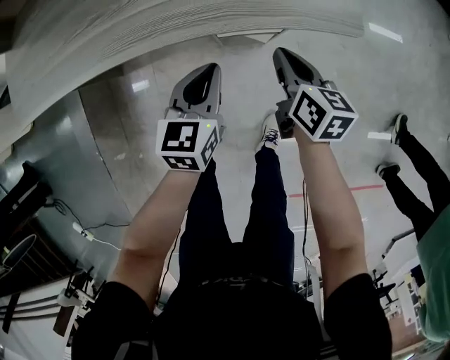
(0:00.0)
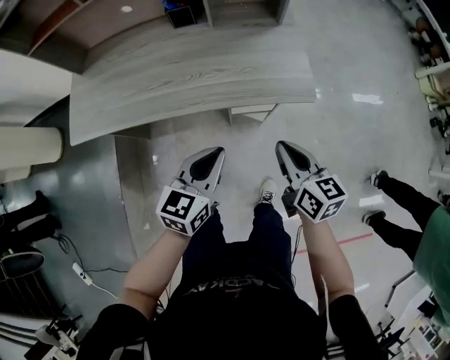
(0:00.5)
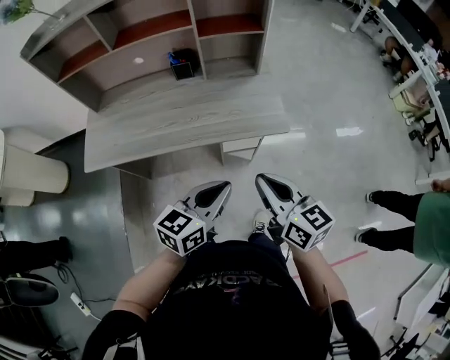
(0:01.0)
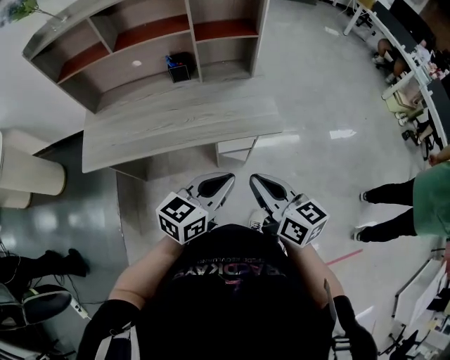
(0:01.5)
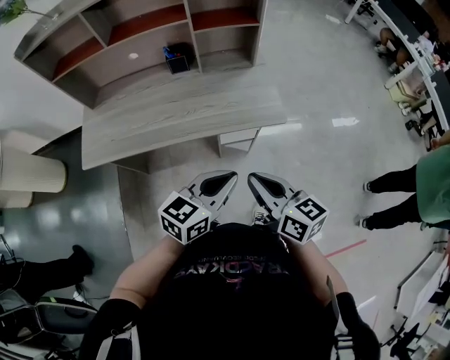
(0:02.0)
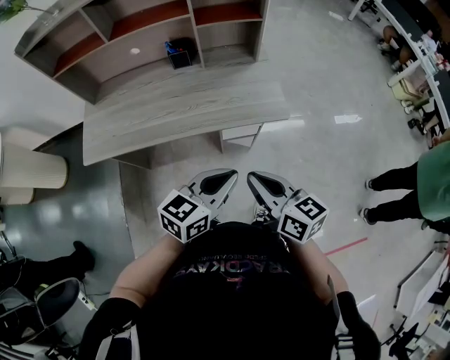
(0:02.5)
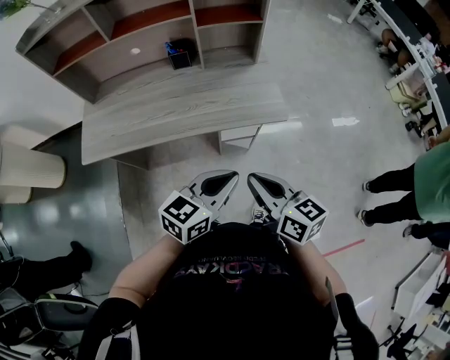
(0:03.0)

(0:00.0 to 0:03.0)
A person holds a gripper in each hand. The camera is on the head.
0:00.0 - 0:01.5: The left gripper heads upward, covering some 25 cm, and swivels some 30 degrees, while the right gripper shifts about 35 cm upward and backward, and rotates approximately 20 degrees.
0:01.5 - 0:03.0: The grippers move only a little.

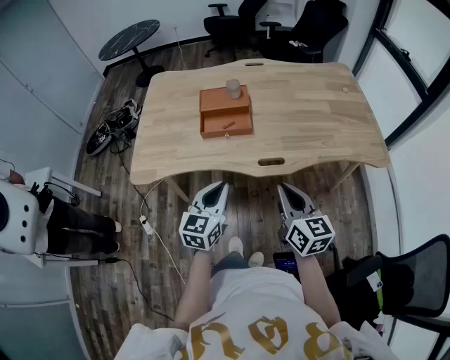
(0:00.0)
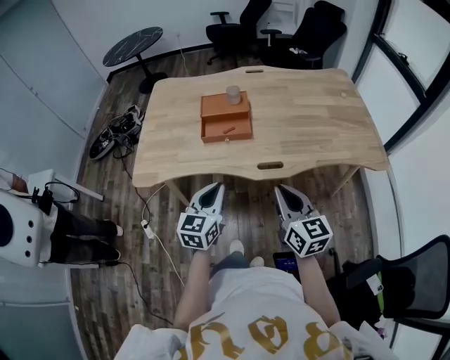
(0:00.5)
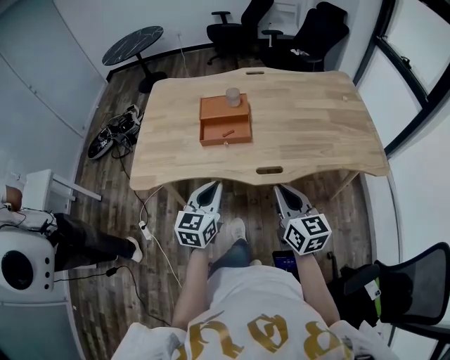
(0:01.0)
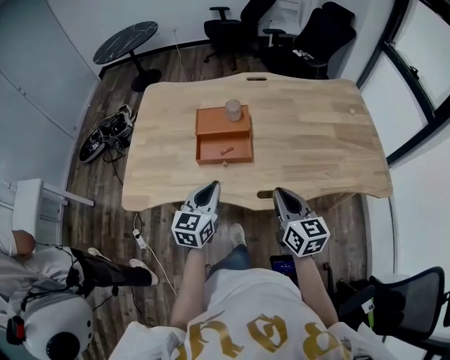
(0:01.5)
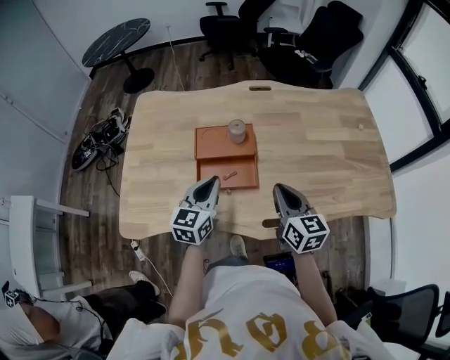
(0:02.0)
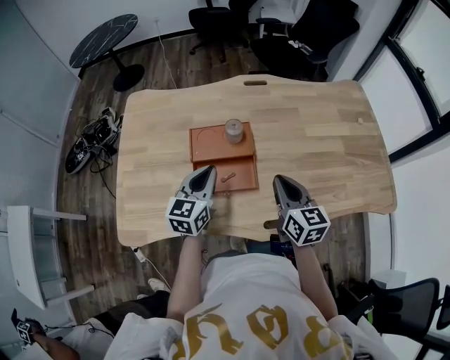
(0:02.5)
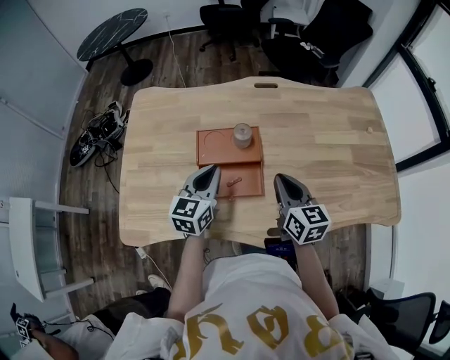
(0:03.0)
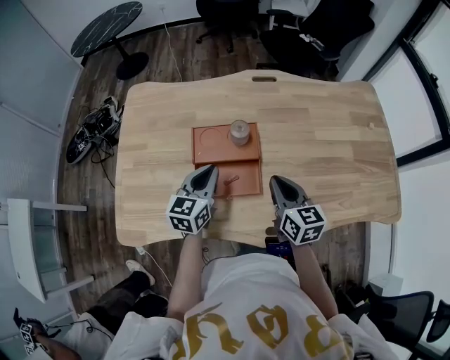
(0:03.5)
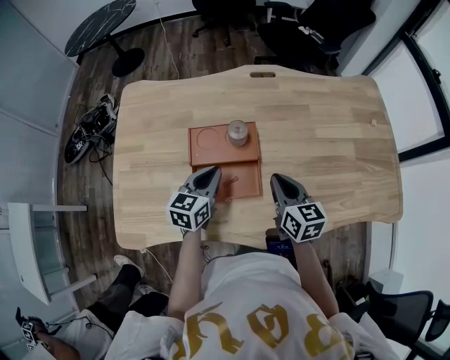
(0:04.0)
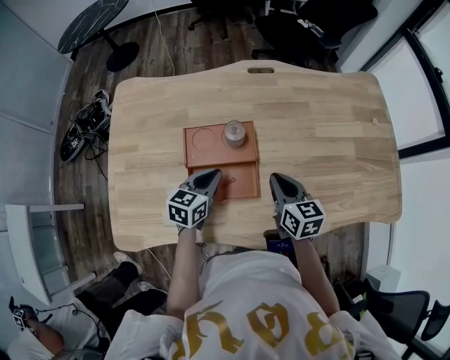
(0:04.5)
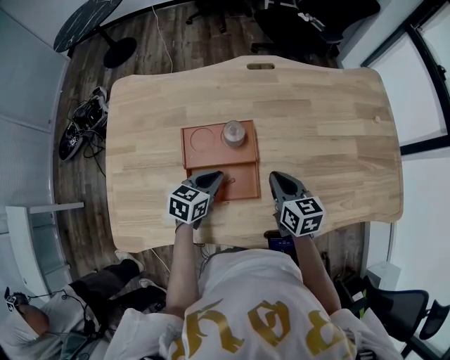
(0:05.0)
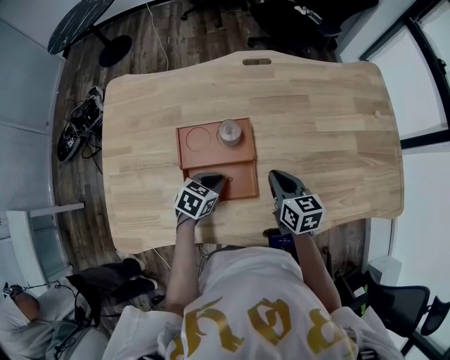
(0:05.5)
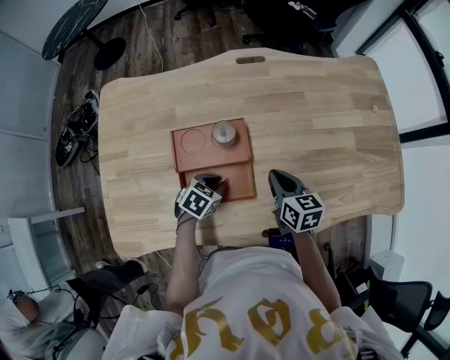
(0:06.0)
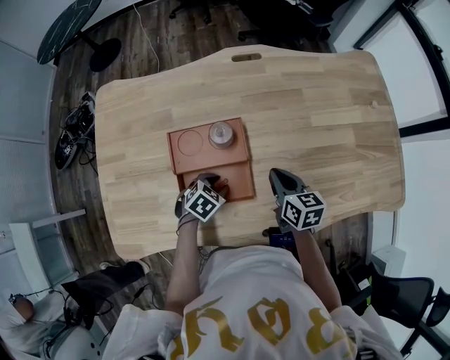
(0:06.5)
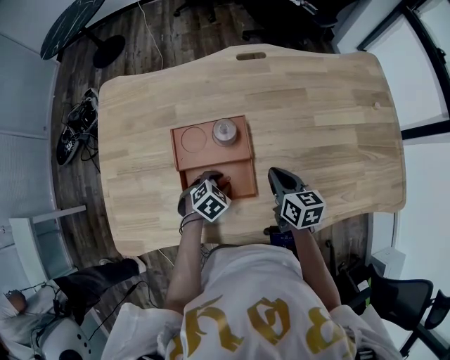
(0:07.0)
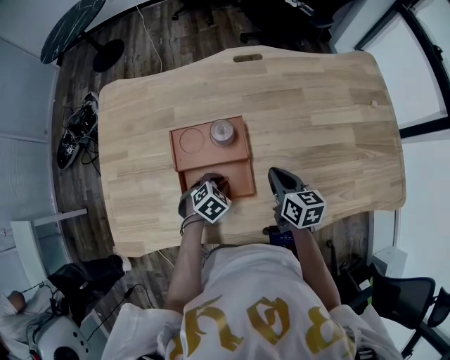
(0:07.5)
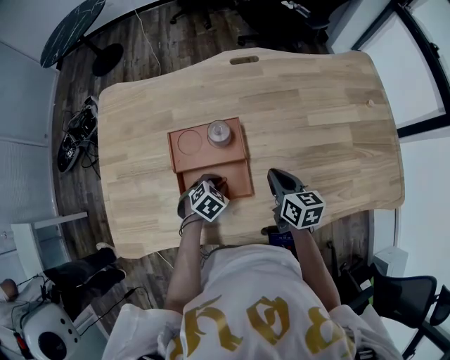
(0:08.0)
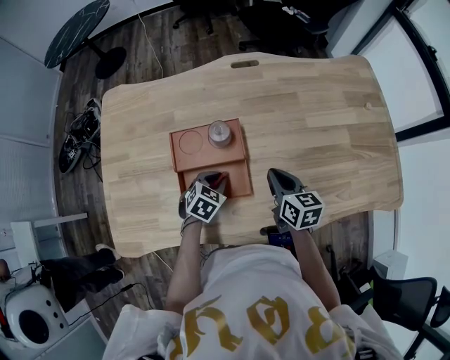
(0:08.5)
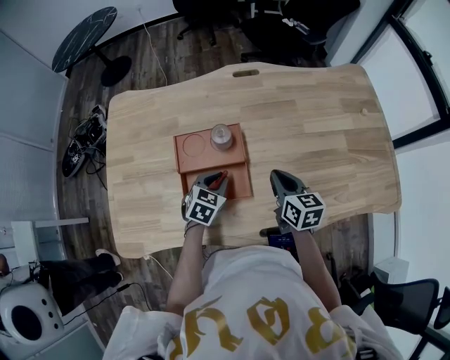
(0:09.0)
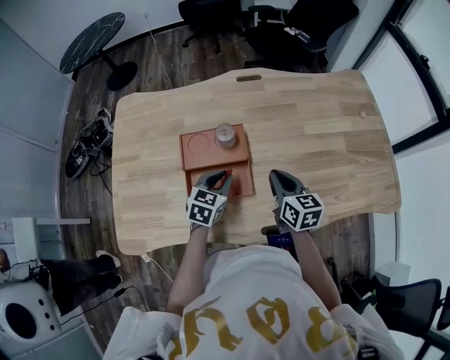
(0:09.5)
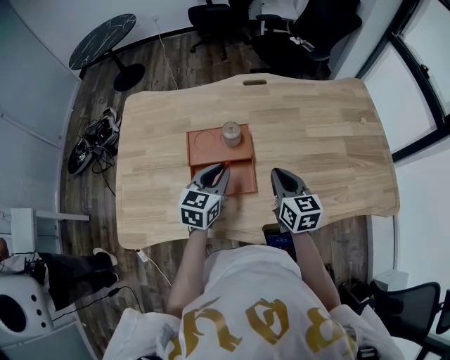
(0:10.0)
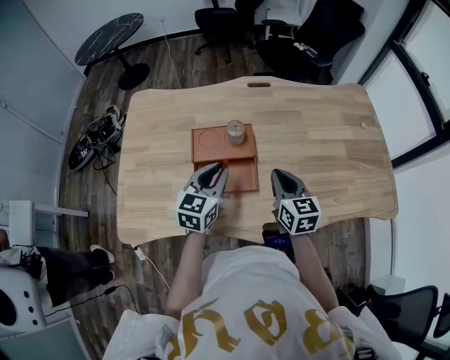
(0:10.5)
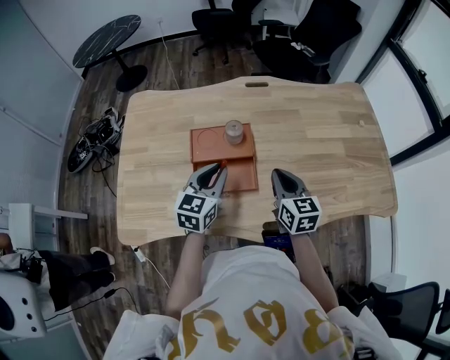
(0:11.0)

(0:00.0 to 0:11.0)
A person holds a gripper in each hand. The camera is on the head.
0:00.0 - 0:02.0: The grippers both shift forward by some 30 cm.
0:02.0 - 0:03.5: Both grippers travel together forward, roughly 10 cm.
0:03.5 - 0:05.5: The left gripper heads downward, covering about 15 cm, and tilts its fingers some 30 degrees downward; the right gripper moves downward and forward, some 10 cm.
0:05.5 - 0:07.5: The left gripper moves about 5 cm, and swivels roughly 30 degrees.
0:07.5 - 0:09.0: The left gripper shifts approximately 10 cm upward, and swivels roughly 20 degrees.
0:09.0 - 0:11.0: The left gripper shifts about 15 cm upward, and changes its angle by some 30 degrees; the right gripper is displaced upward and backward by roughly 10 cm.

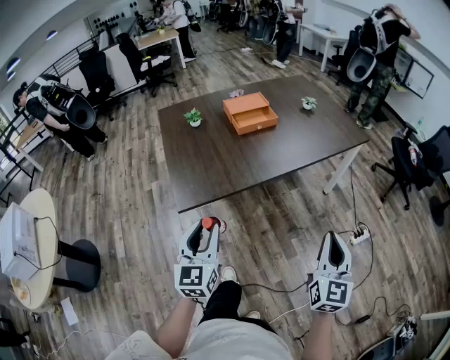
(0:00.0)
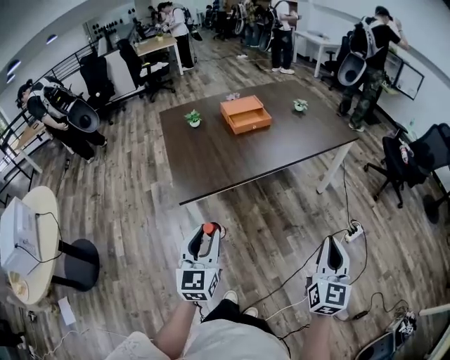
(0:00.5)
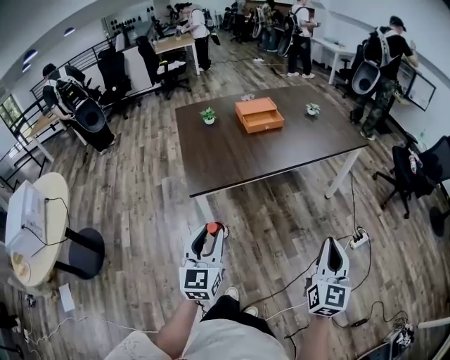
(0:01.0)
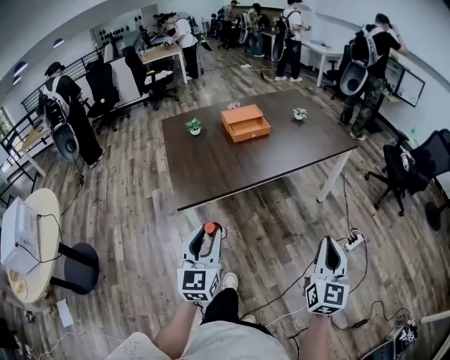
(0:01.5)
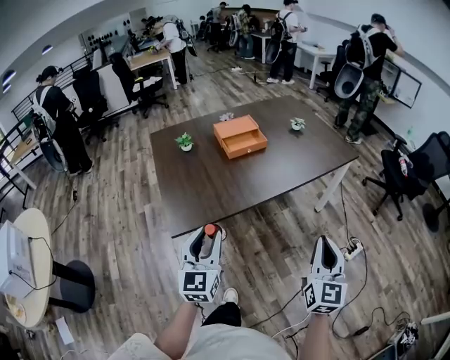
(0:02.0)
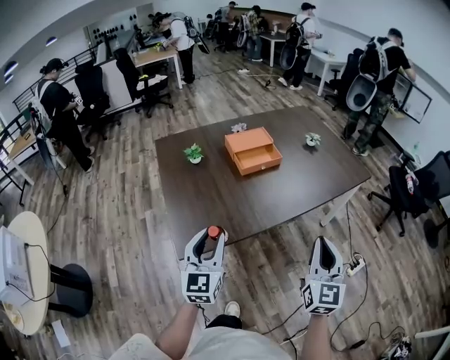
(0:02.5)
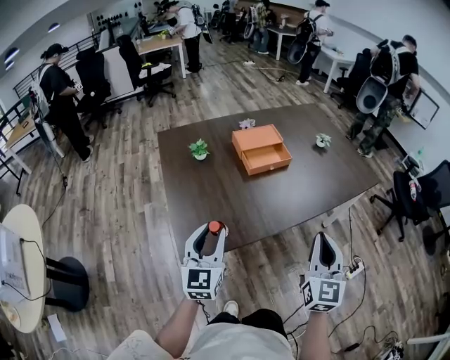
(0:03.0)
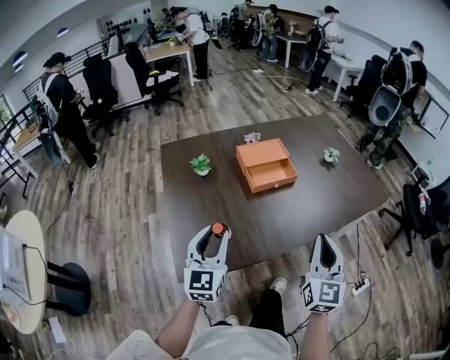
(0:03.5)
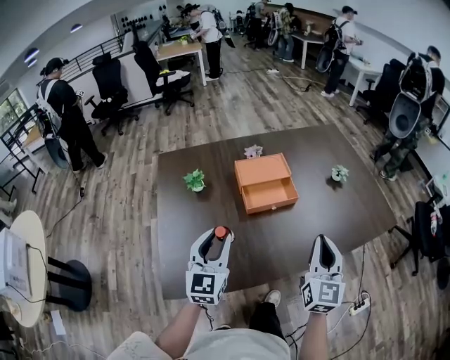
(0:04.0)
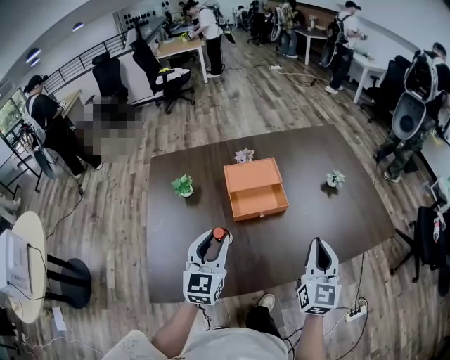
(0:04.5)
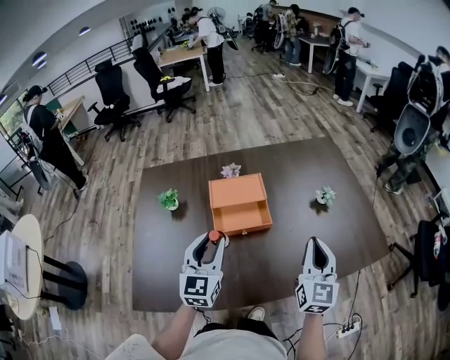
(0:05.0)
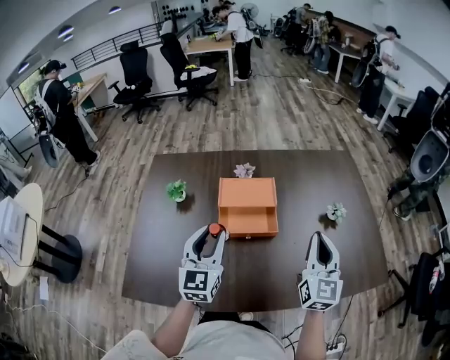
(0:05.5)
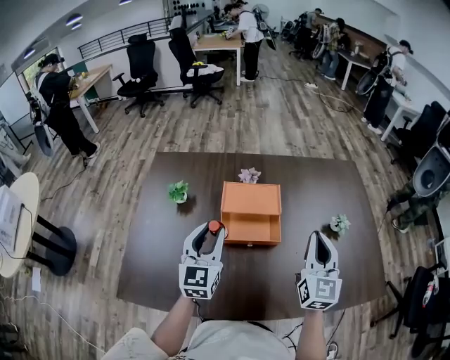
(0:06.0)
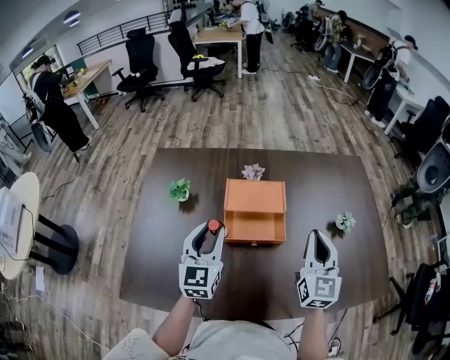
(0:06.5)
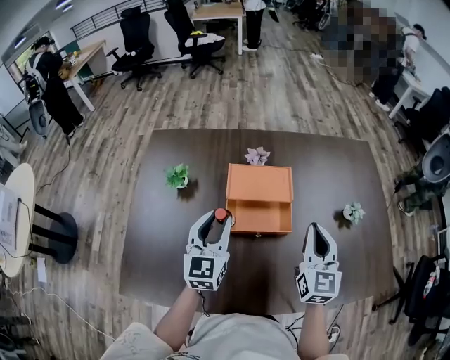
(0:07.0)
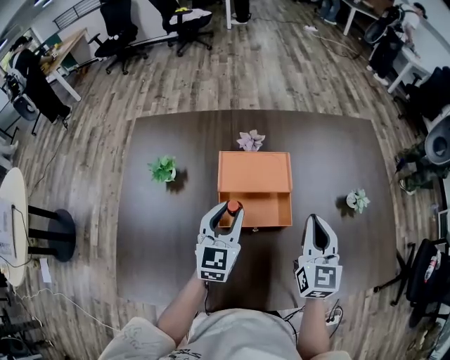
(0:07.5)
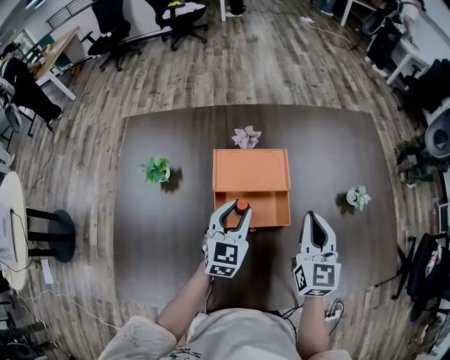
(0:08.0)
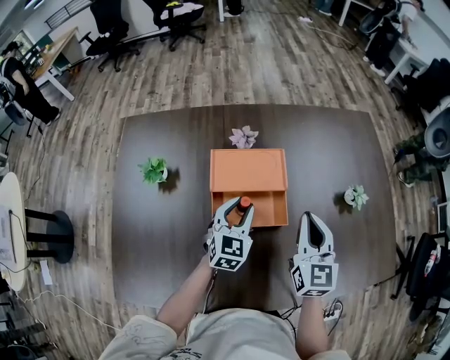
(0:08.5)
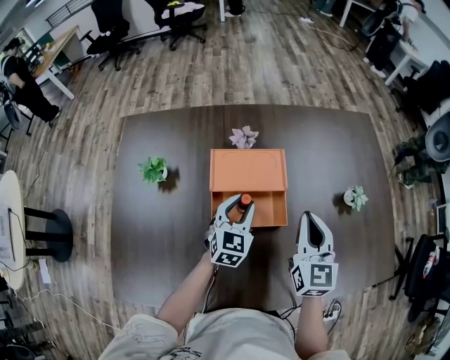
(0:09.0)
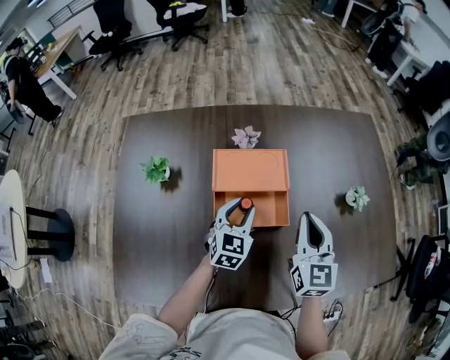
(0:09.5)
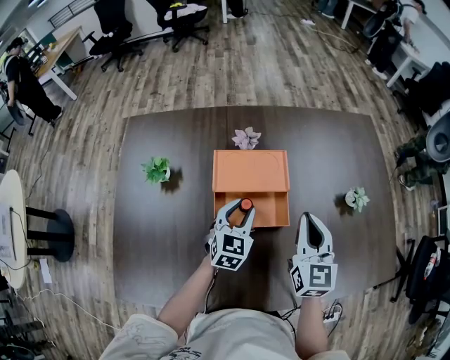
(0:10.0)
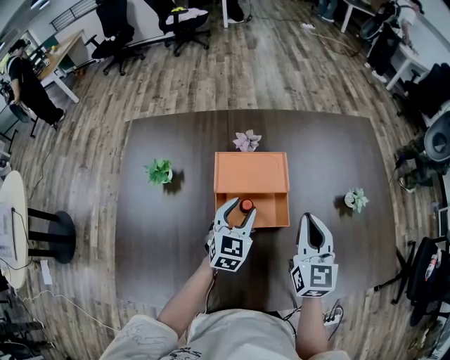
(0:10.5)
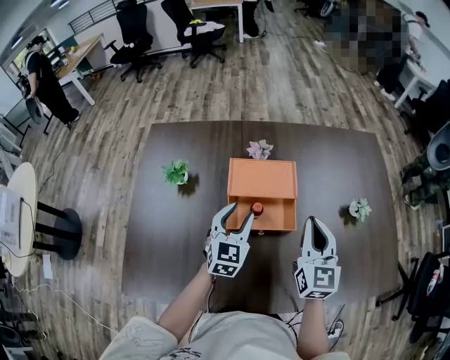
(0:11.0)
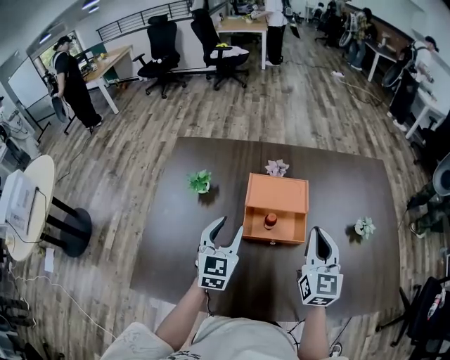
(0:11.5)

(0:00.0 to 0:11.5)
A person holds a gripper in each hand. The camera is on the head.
0:00.0 - 0:02.0: The left gripper travels backward and back again, roughly 15 cm each way. Meanwhile the right gripper reaches roughly 10 cm backward, then returns.
0:02.0 - 0:04.0: The two grippers go about 35 cm forward.
0:04.0 - 0:06.0: The right gripper heads forward, covering some 25 cm, while the left gripper travels forward and to the right by about 20 cm.
0:06.0 - 0:07.5: The grippers both shift downward and forward by roughly 10 cm.
0:07.5 - 0:09.5: The left gripper is displaced downward by roughly 10 cm.
0:09.5 - 0:11.5: The left gripper is displaced to the left, upward and backward by roughly 20 cm, and rotates some 20 degrees. Meanwhile the right gripper is displaced upward by roughly 5 cm.

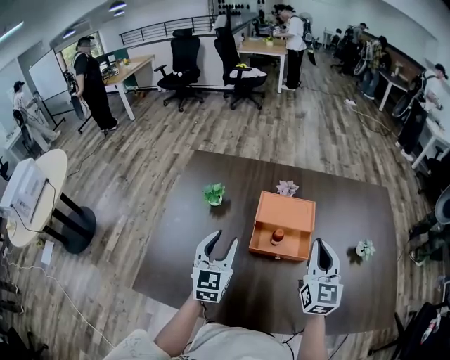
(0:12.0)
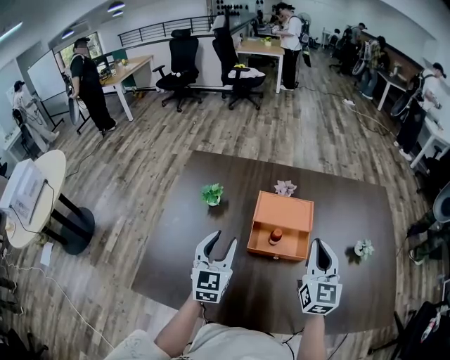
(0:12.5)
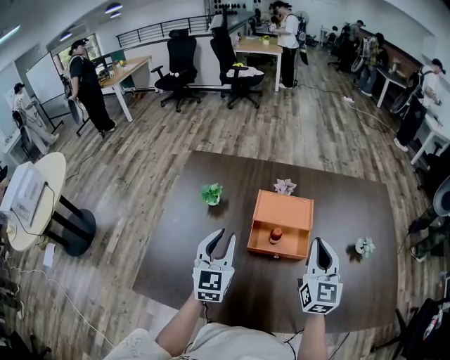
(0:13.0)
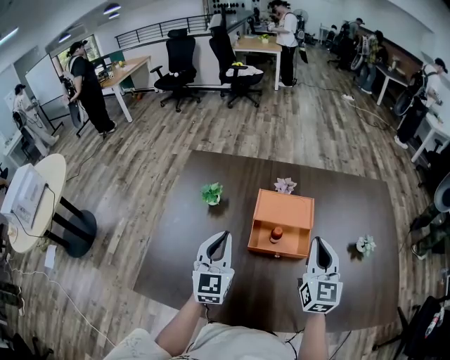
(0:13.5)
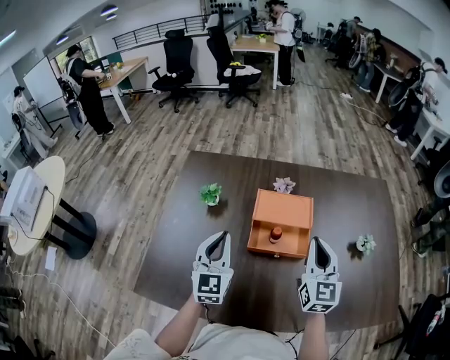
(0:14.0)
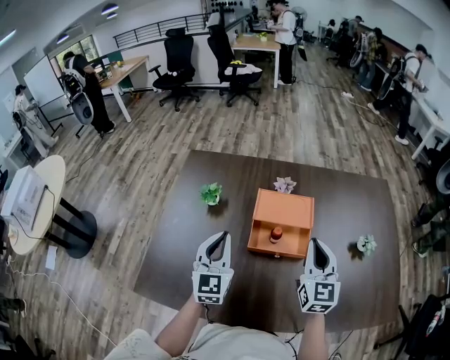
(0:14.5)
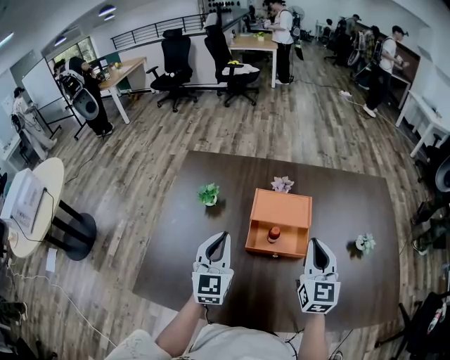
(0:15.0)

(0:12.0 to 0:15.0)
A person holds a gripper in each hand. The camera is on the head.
0:12.0 - 0:13.5: The left gripper closes its fingers.
0:13.5 - 0:15.0: Neither gripper changes place.
